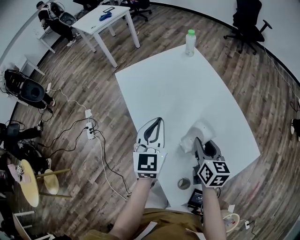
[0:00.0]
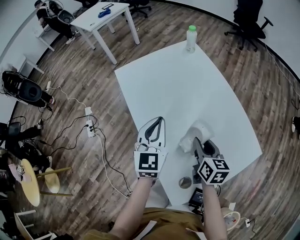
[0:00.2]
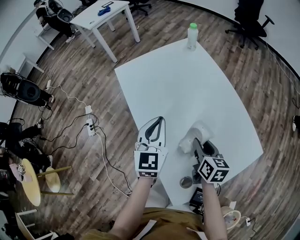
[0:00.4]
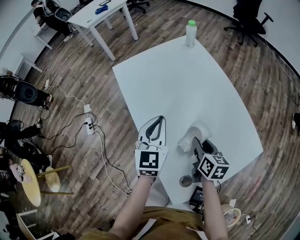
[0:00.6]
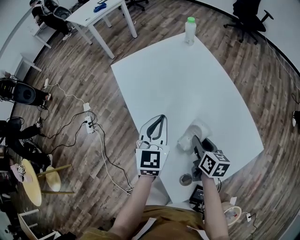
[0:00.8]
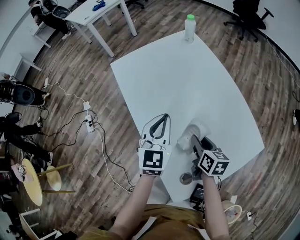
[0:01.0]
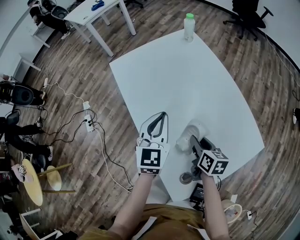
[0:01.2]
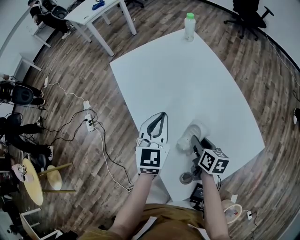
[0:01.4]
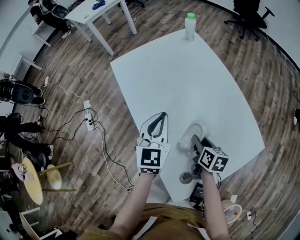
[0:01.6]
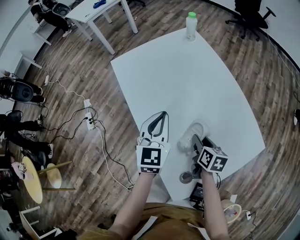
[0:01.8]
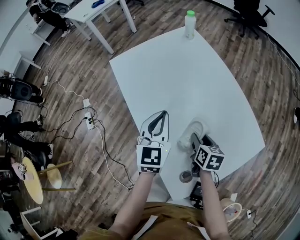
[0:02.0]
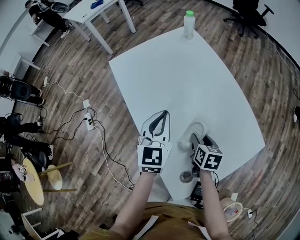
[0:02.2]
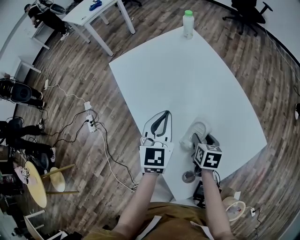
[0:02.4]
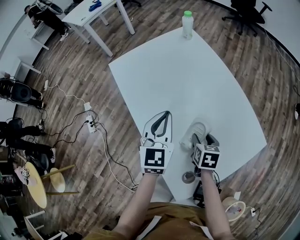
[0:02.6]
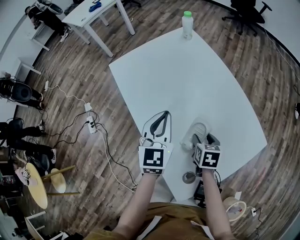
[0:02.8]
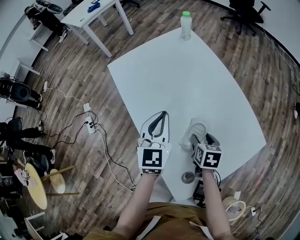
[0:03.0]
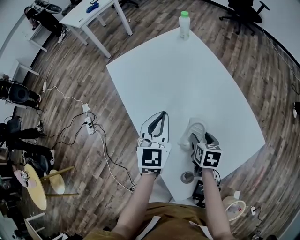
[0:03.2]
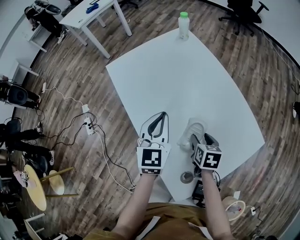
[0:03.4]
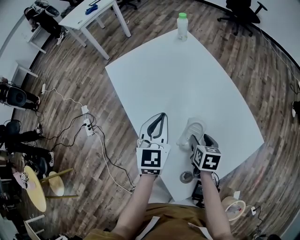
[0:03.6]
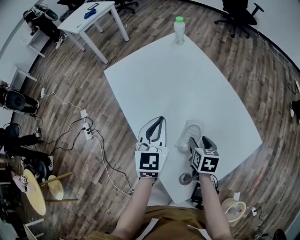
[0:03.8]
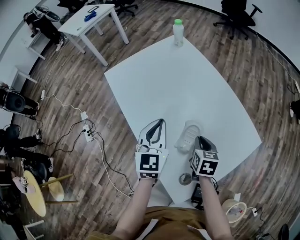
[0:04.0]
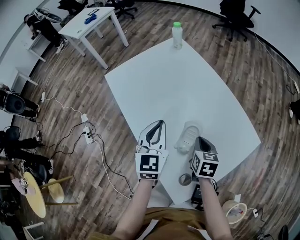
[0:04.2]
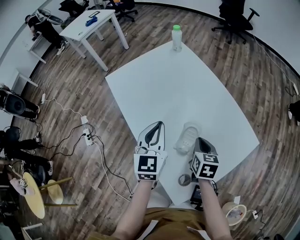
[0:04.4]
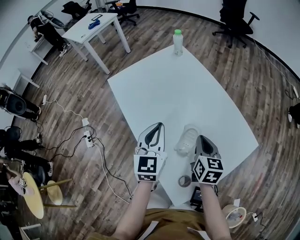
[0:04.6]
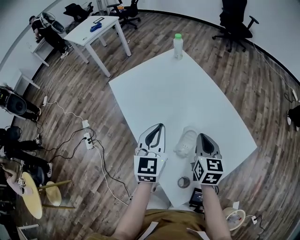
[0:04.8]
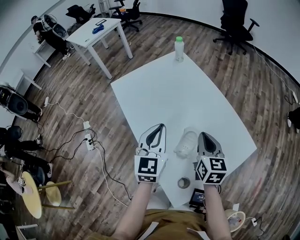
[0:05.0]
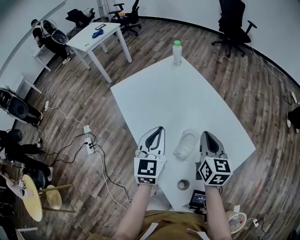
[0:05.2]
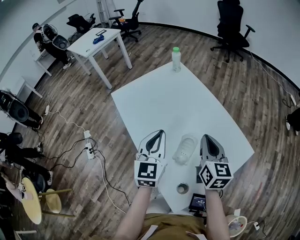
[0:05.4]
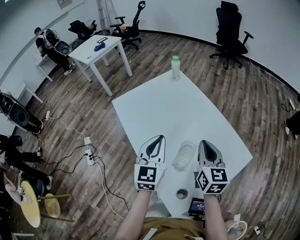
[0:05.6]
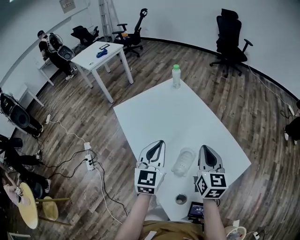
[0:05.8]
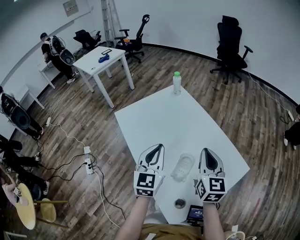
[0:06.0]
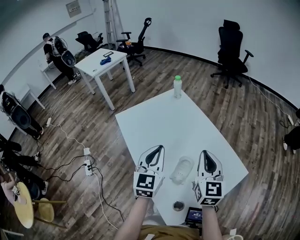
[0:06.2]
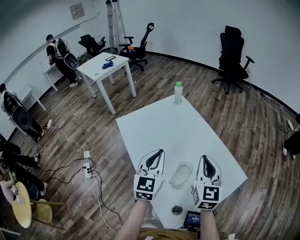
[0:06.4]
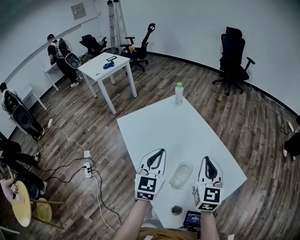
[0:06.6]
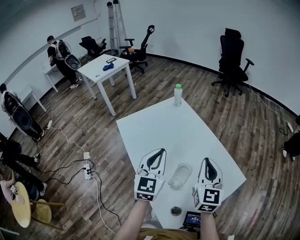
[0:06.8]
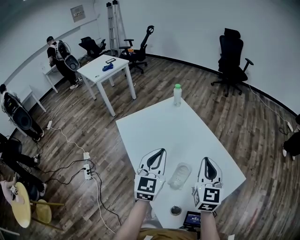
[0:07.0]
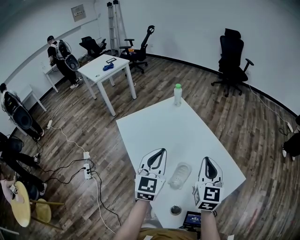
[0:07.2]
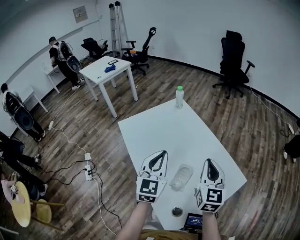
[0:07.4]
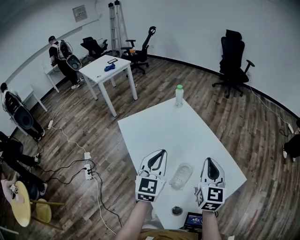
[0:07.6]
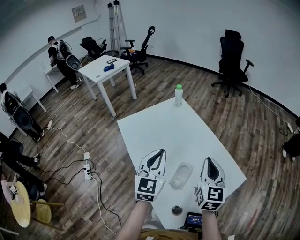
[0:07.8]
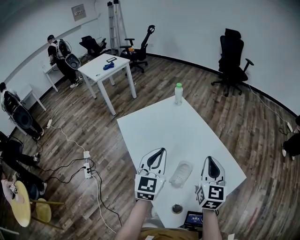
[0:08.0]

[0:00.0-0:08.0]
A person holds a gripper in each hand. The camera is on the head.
0:00.0 to 0:01.6: The right gripper goes about 10 cm downward, and rotates approximately 20 degrees.
0:01.6 to 0:03.2: The right gripper opens its fingers.
0:03.2 to 0:04.8: The right gripper travels upward by roughly 15 cm, turns by about 30 degrees, and closes up, while the left gripper moves some 5 cm.
0:04.8 to 0:06.4: The right gripper shifts approximately 15 cm upward, and turns by approximately 20 degrees. The left gripper goes roughly 5 cm upward.
0:06.4 to 0:08.0: The grippers move only a little.

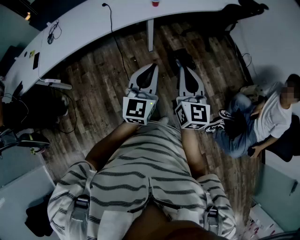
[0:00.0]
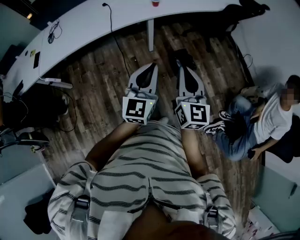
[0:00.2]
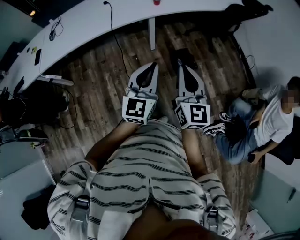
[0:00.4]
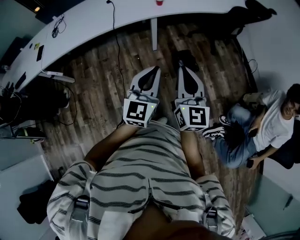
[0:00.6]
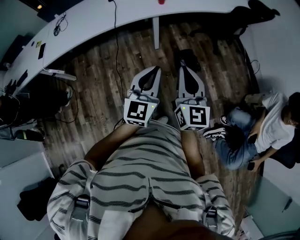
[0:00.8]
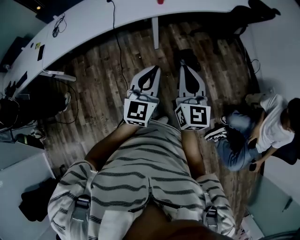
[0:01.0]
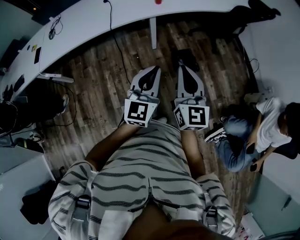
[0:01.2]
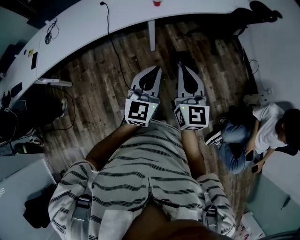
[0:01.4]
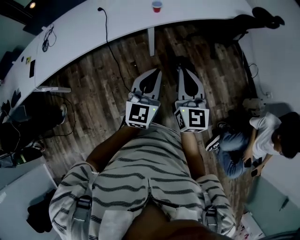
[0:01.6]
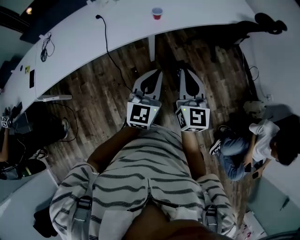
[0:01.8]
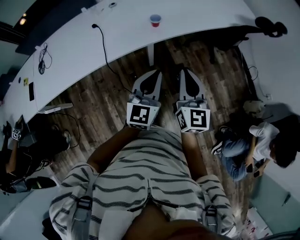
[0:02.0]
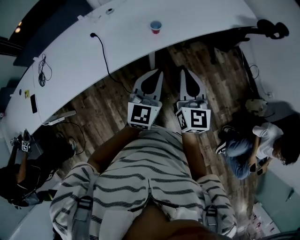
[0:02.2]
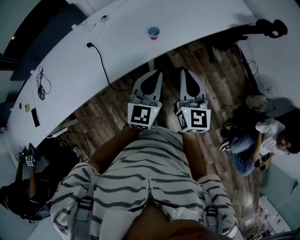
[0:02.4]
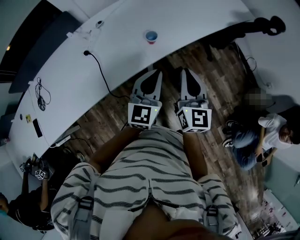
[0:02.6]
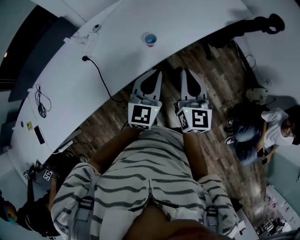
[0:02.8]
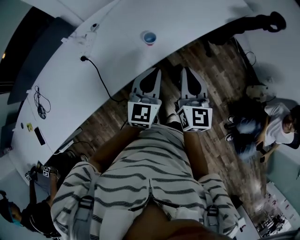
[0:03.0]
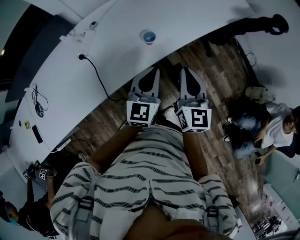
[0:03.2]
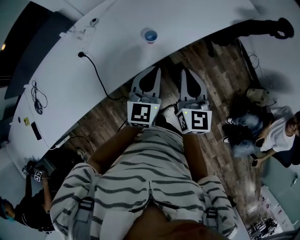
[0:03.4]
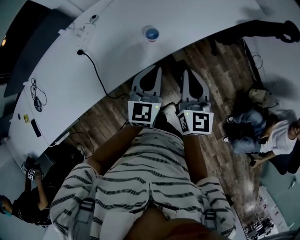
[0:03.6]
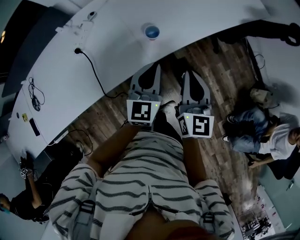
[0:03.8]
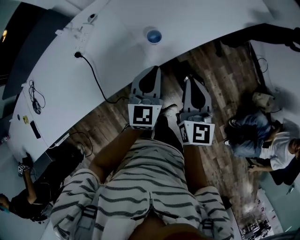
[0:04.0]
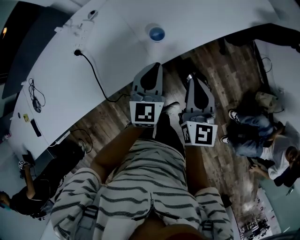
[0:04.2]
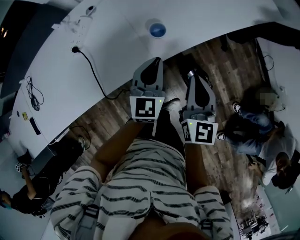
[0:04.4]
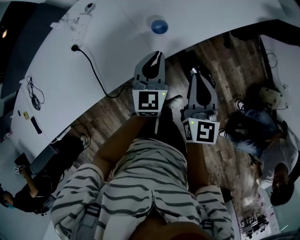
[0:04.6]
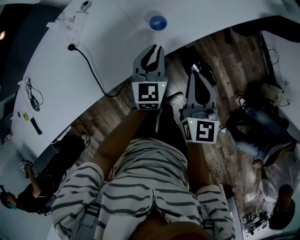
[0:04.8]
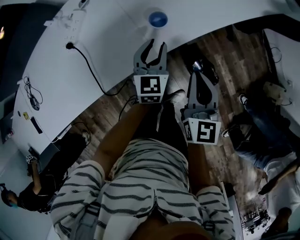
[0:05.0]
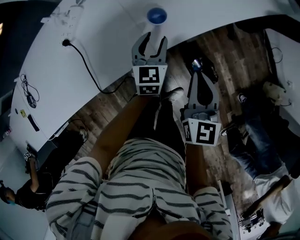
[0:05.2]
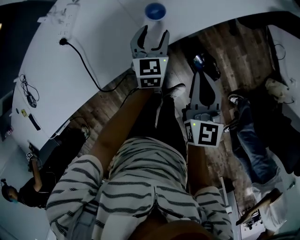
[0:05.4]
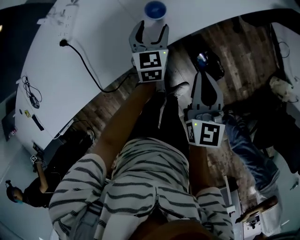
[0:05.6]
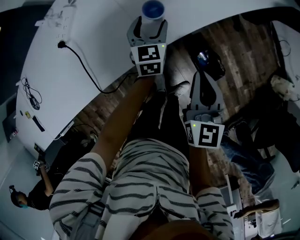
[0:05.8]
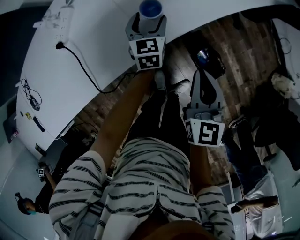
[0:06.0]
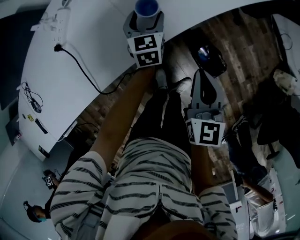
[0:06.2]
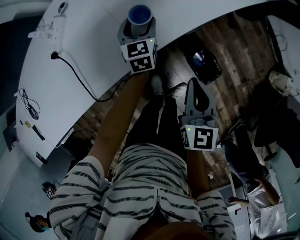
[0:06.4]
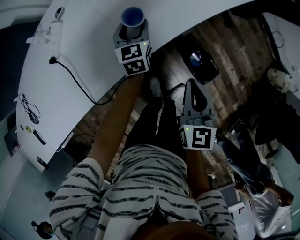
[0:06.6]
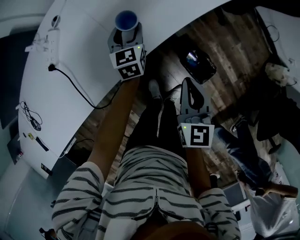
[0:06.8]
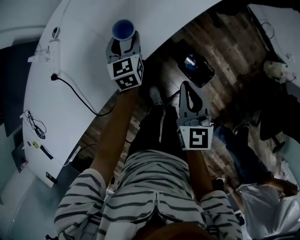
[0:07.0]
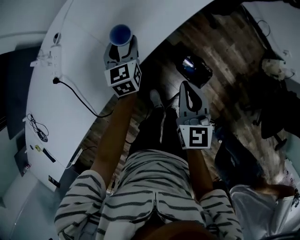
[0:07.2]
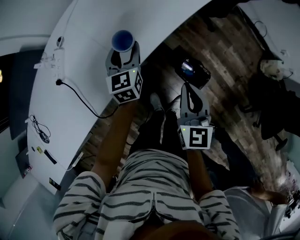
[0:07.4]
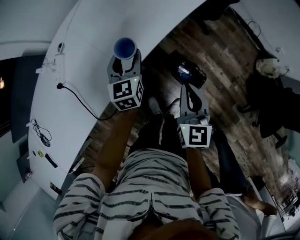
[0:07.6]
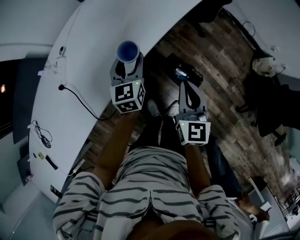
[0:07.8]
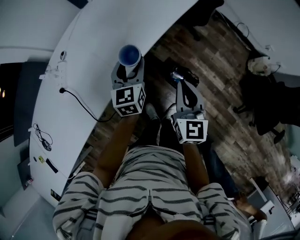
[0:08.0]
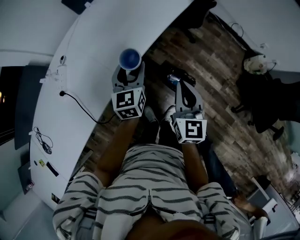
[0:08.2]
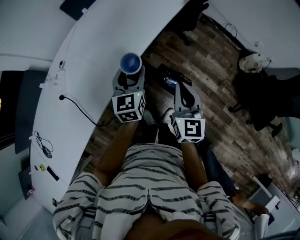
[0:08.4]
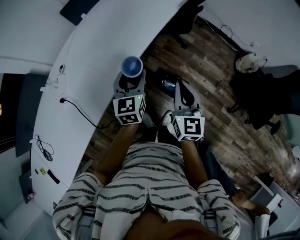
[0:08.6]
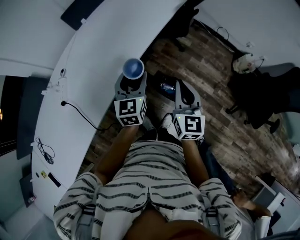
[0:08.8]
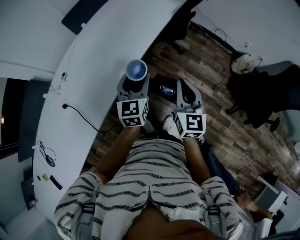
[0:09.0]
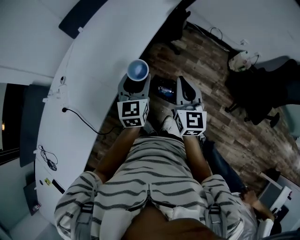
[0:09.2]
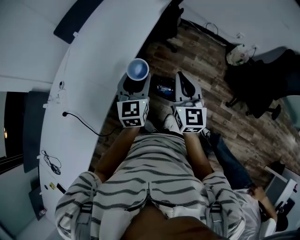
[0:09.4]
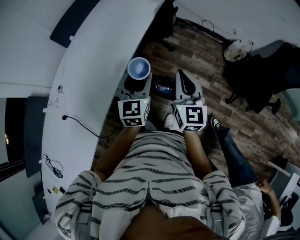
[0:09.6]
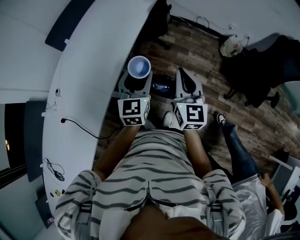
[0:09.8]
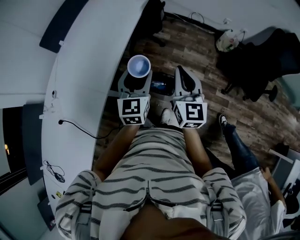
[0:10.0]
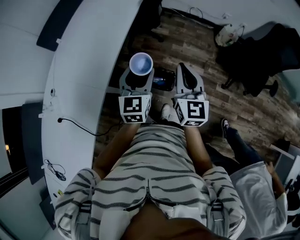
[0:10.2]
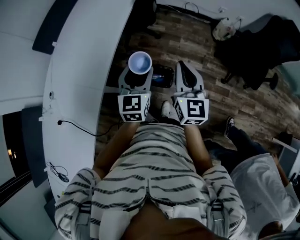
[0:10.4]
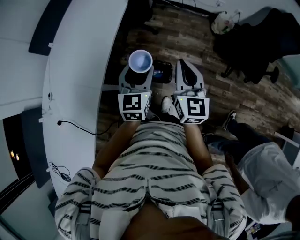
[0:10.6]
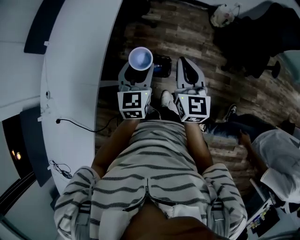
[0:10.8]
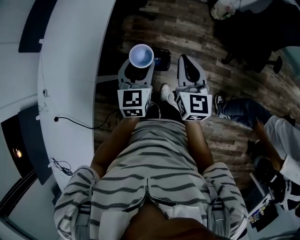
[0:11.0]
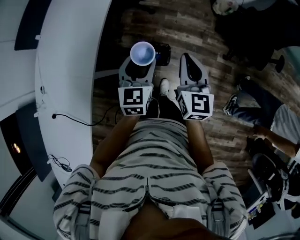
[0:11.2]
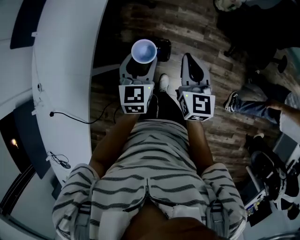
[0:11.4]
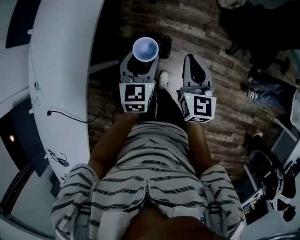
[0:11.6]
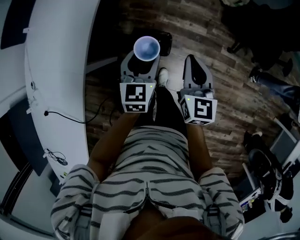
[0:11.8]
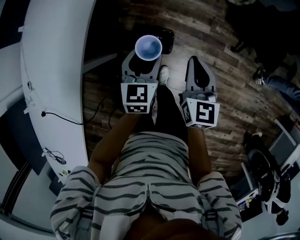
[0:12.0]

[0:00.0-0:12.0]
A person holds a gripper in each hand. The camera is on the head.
0:00.0 to 0:01.6: Both grippers move forward, about 15 cm.
0:01.6 to 0:03.0: Both grippers move forward, some 30 cm.
0:03.0 to 0:04.4: The two grippers go about 10 cm downward and forward.
0:04.4 to 0:06.0: The left gripper heads downward and forward, covering approximately 20 cm, and opens its fingers. The right gripper goes some 10 cm downward.
0:06.0 to 0:07.6: The left gripper travels upward, to the right and backward by some 15 cm. Meanwhile the right gripper is displaced to the right by approximately 5 cm.
0:07.6 to 0:09.0: The right gripper goes roughly 15 cm upward and to the right, while the left gripper heads upward, to the right and backward, covering about 20 cm.
0:09.0 to 0:10.4: Both grippers travel together to the right, roughly 10 cm. The left gripper changes its angle by roughly 20 degrees.
0:10.4 to 0:12.0: The grippers both shift downward and to the right by approximately 20 cm.

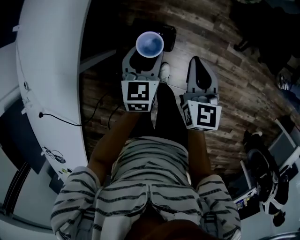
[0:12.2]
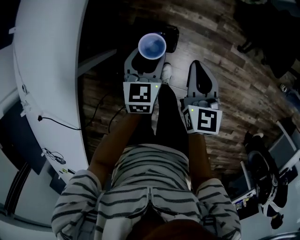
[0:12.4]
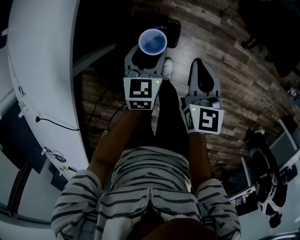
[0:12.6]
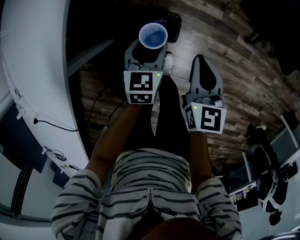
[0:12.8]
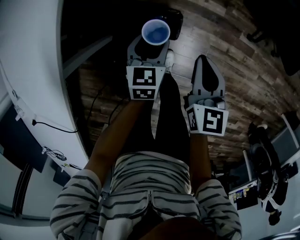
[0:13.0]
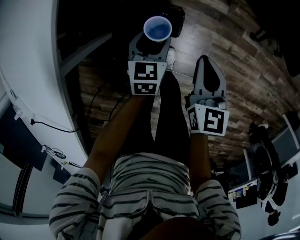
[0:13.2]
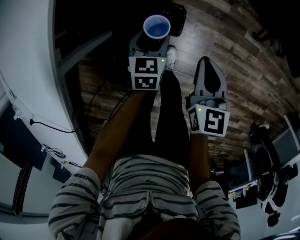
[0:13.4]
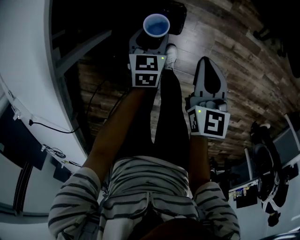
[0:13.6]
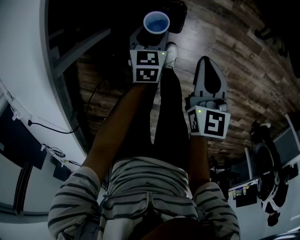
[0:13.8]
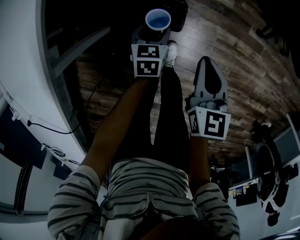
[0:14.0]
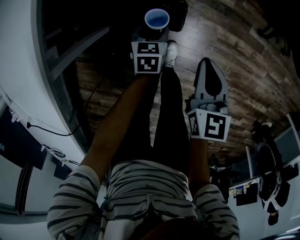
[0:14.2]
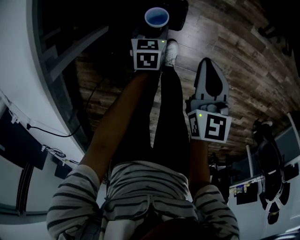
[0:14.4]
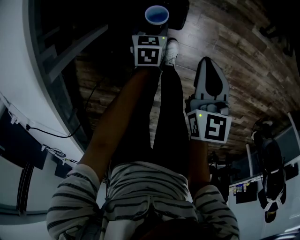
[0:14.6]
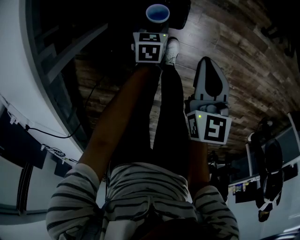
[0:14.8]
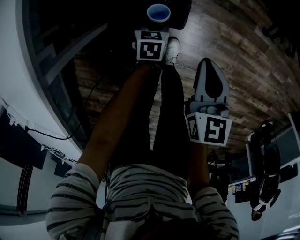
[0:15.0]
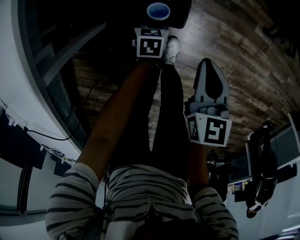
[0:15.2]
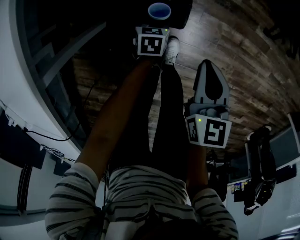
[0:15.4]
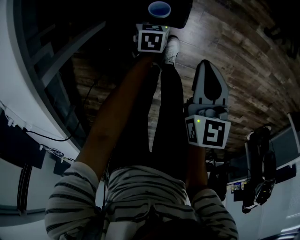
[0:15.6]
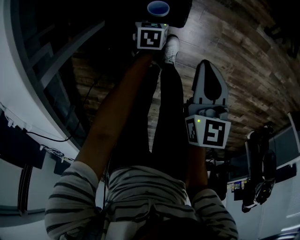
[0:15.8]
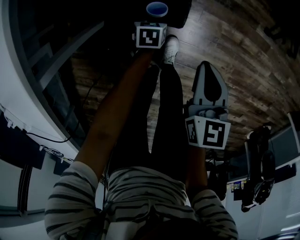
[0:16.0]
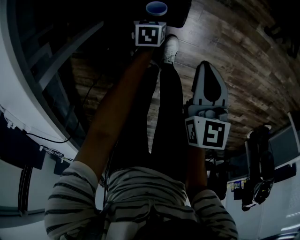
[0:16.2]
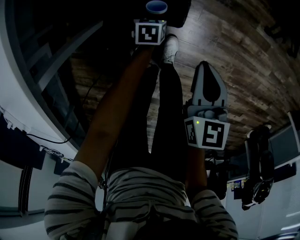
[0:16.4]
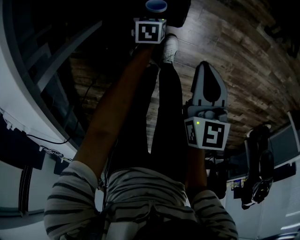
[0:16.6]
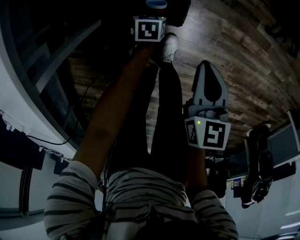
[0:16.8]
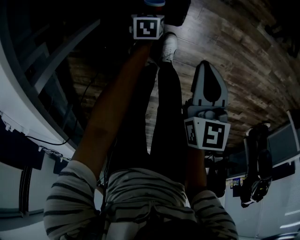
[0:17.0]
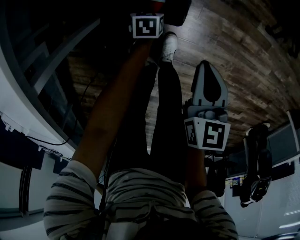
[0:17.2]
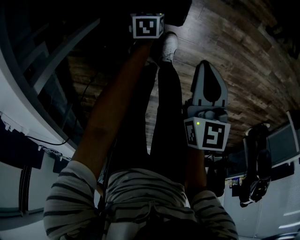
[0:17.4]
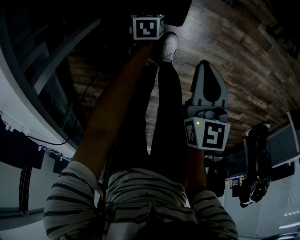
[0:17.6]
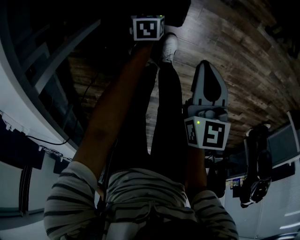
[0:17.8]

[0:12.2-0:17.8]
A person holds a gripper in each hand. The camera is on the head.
0:12.2 to 0:13.6: The left gripper is displaced downward by some 25 cm, while the right gripper shifts about 15 cm downward.
0:13.6 to 0:15.0: The right gripper goes roughly 5 cm downward; the left gripper shifts about 15 cm downward.
0:15.0 to 0:16.4: The left gripper moves downward, some 10 cm.
0:16.4 to 0:17.8: The grippers stay close to where they were, moving slightly.
